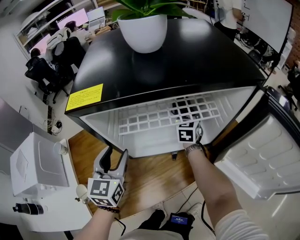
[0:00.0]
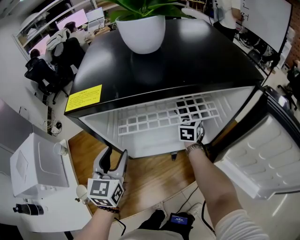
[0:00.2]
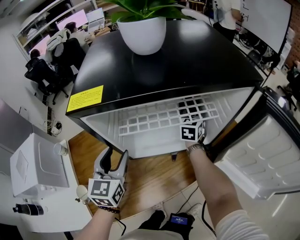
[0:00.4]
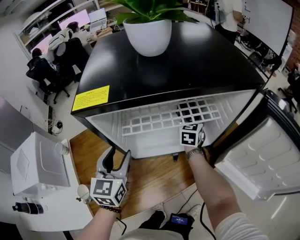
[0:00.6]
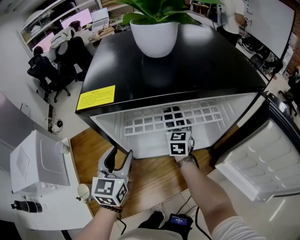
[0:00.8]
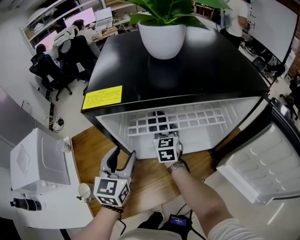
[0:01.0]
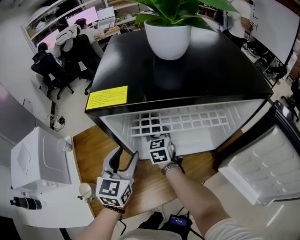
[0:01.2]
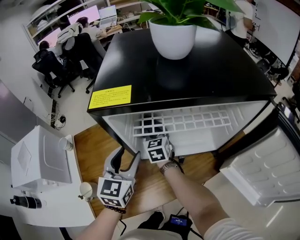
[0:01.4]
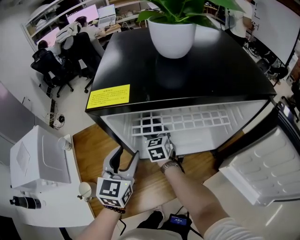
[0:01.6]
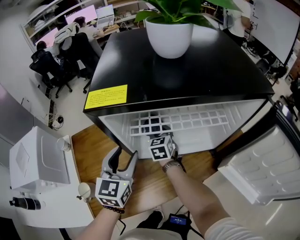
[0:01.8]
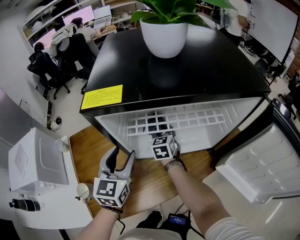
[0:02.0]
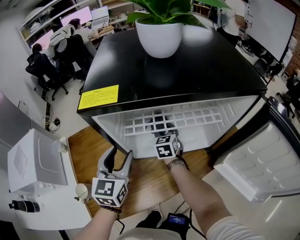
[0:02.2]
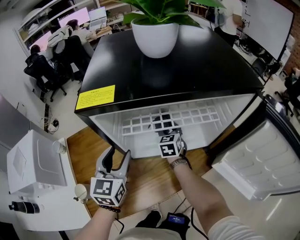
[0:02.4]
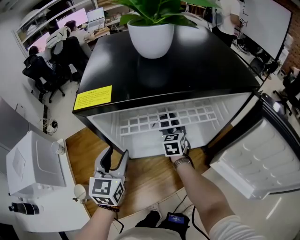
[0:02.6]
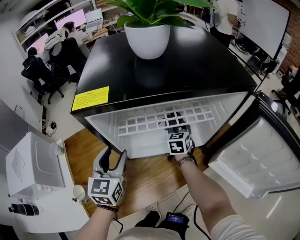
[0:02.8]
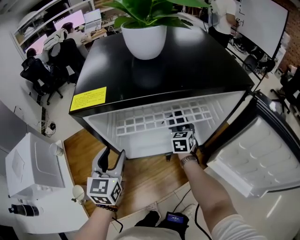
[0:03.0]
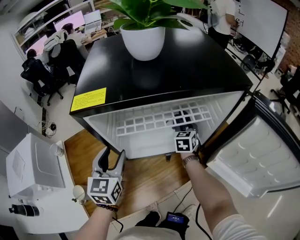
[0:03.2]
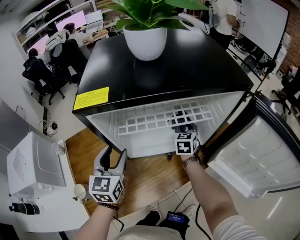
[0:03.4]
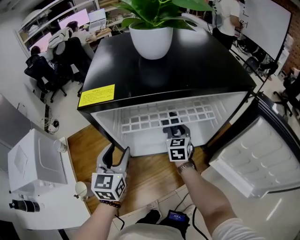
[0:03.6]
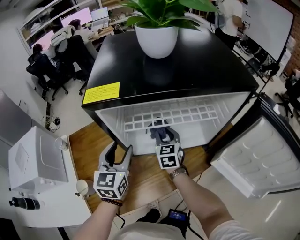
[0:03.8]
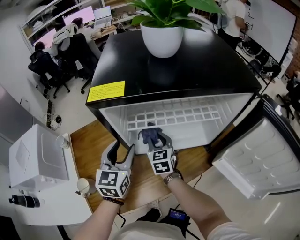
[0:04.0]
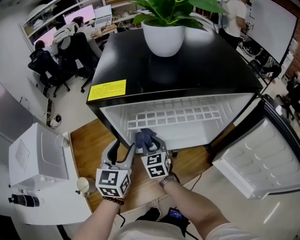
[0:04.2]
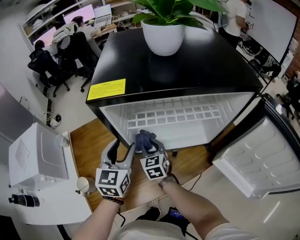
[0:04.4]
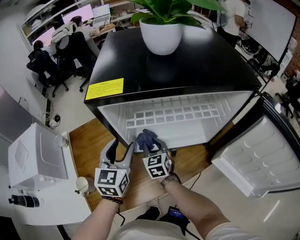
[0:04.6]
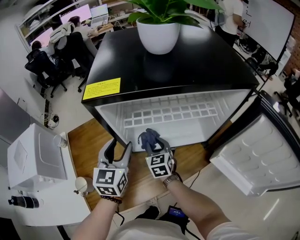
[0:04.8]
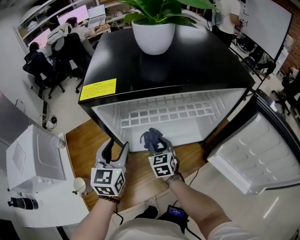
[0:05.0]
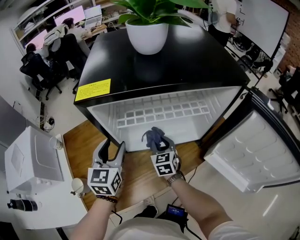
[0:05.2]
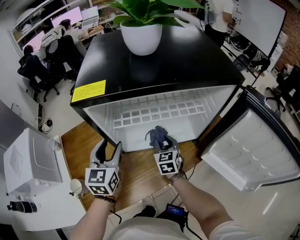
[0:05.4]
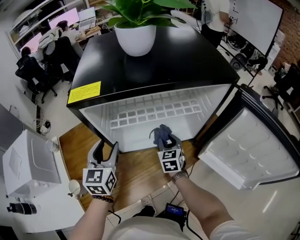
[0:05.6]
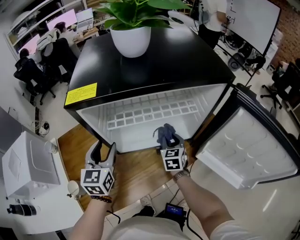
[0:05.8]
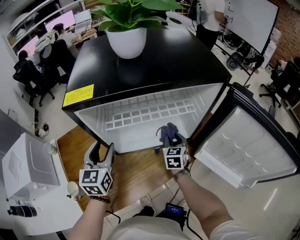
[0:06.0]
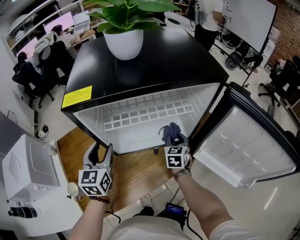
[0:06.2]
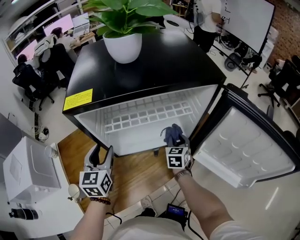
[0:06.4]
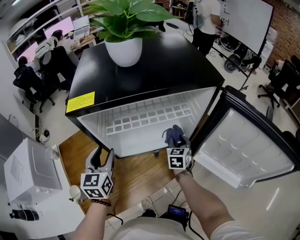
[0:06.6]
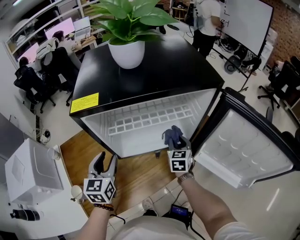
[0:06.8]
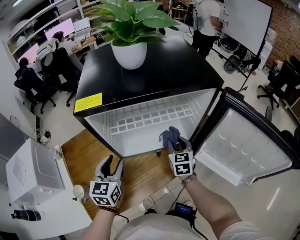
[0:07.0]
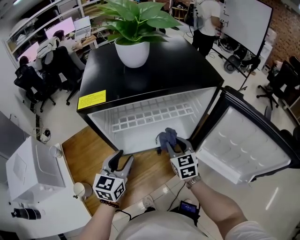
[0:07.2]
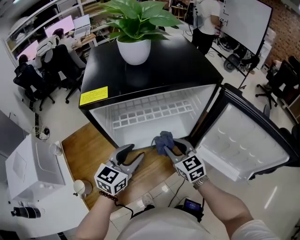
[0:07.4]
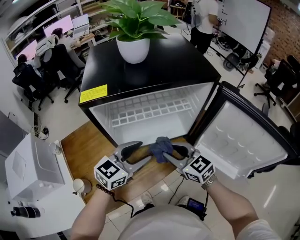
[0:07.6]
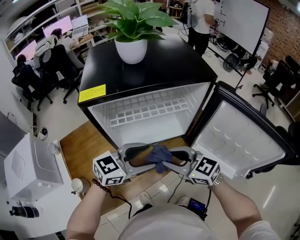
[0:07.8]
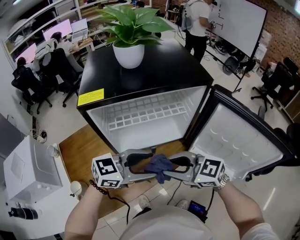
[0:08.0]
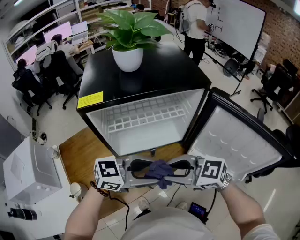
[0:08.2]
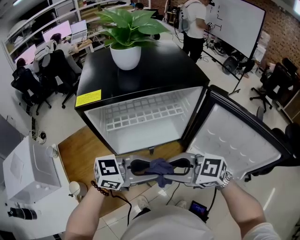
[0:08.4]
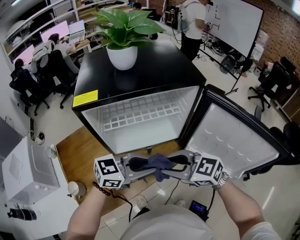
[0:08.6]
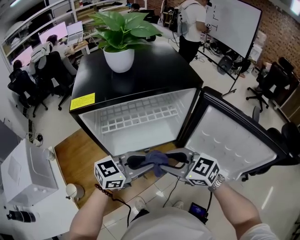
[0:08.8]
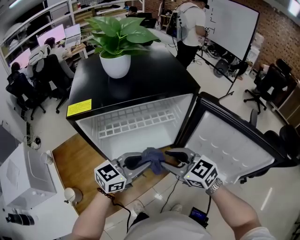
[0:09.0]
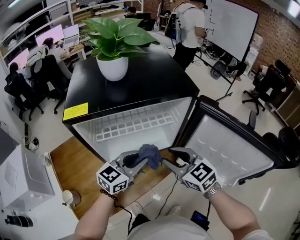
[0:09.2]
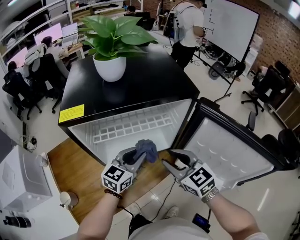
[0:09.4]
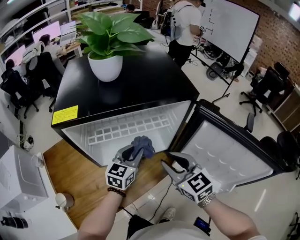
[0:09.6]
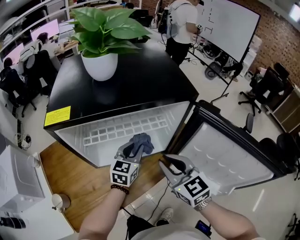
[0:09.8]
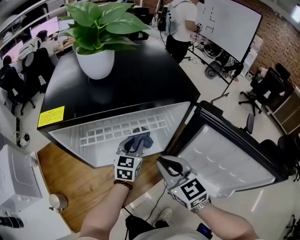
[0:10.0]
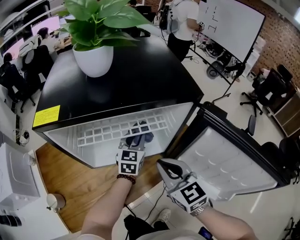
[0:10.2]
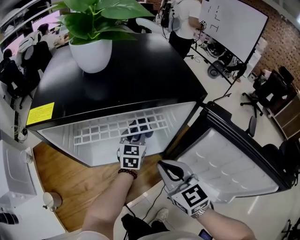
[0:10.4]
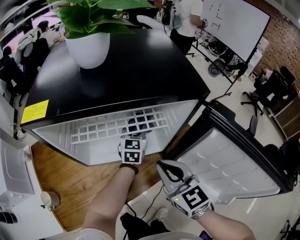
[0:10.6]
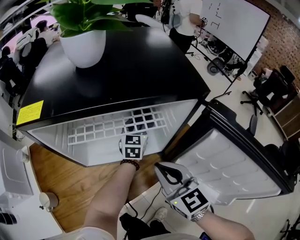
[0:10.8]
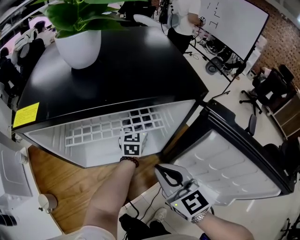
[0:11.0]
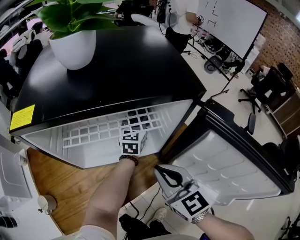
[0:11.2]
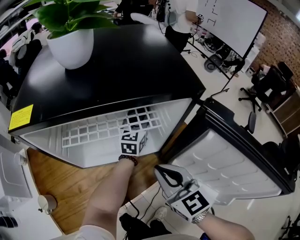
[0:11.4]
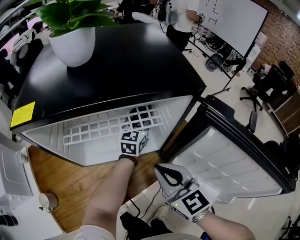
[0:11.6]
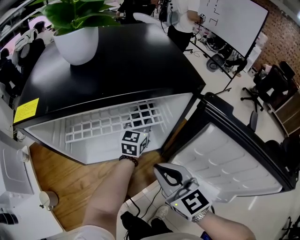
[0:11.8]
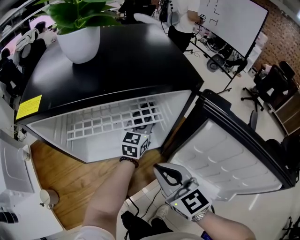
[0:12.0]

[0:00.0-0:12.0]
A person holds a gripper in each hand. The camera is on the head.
0:00.0 to 0:01.6: The right gripper shifts roughly 20 cm to the left, and swivels about 20 degrees.
0:01.6 to 0:03.0: The right gripper moves to the right, some 20 cm, and swivels roughly 20 degrees.
0:03.0 to 0:04.4: The right gripper is displaced to the left and backward by about 25 cm, and changes its angle by approximately 20 degrees.
0:04.4 to 0:06.0: The right gripper moves to the right, some 20 cm, and turns by roughly 20 degrees.
0:06.0 to 0:07.6: The left gripper moves to the right, approximately 15 cm, and rotates roughly 50 degrees, while the right gripper moves upward and backward, about 20 cm, and changes its angle by approximately 40 degrees.
0:07.6 to 0:09.0: The left gripper closes its fingers.
0:09.0 to 0:10.4: The left gripper moves forward and downward, some 25 cm, and changes its angle by roughly 40 degrees; the right gripper changes place by approximately 5 cm, and closes its fingers.
0:10.4 to 0:12.0: The left gripper shifts roughly 5 cm to the right.

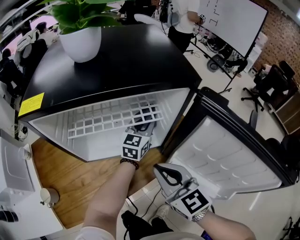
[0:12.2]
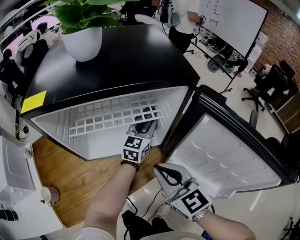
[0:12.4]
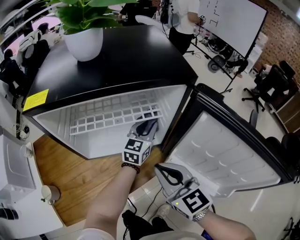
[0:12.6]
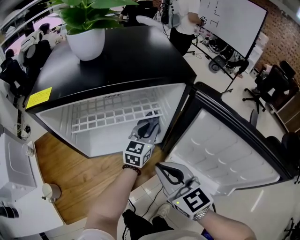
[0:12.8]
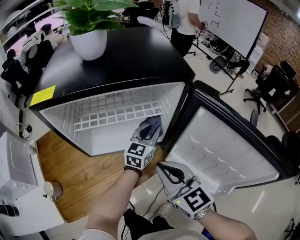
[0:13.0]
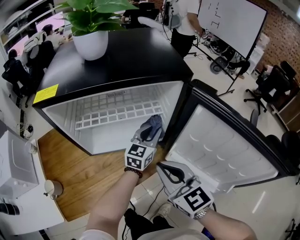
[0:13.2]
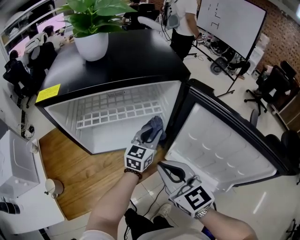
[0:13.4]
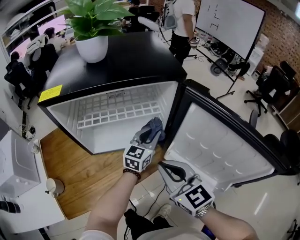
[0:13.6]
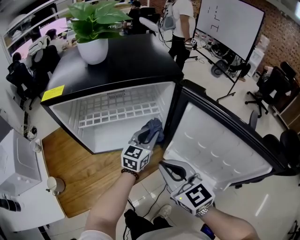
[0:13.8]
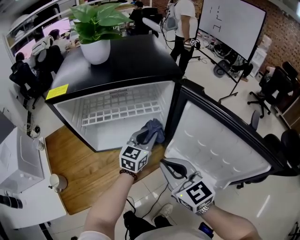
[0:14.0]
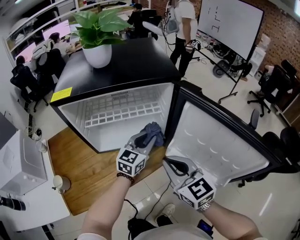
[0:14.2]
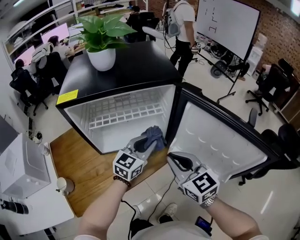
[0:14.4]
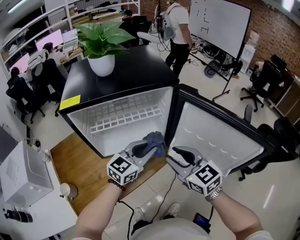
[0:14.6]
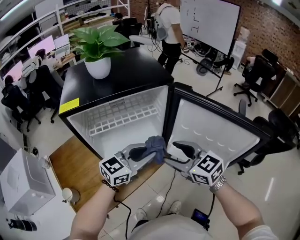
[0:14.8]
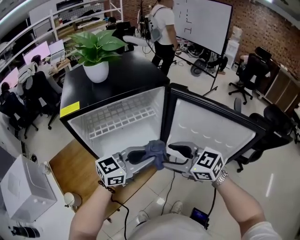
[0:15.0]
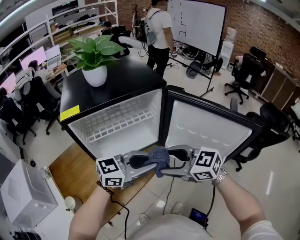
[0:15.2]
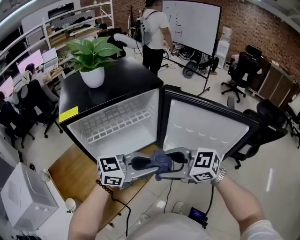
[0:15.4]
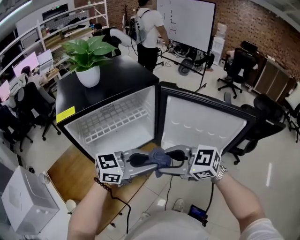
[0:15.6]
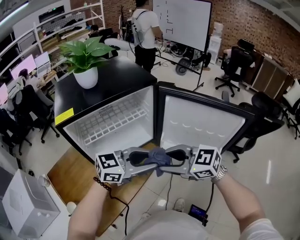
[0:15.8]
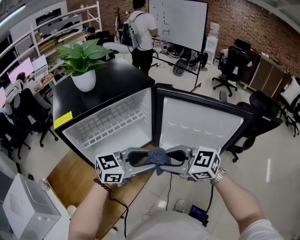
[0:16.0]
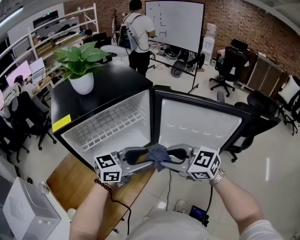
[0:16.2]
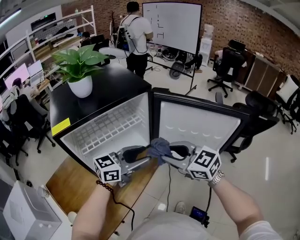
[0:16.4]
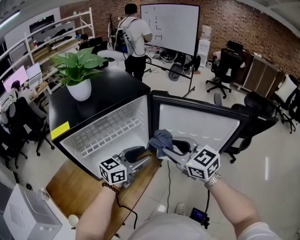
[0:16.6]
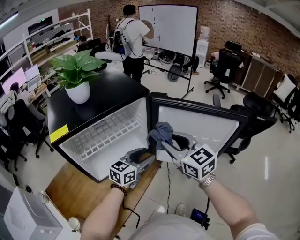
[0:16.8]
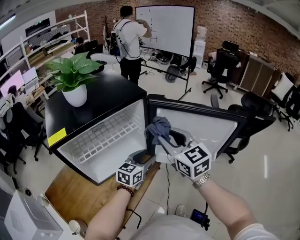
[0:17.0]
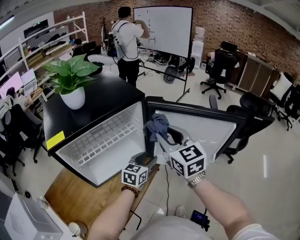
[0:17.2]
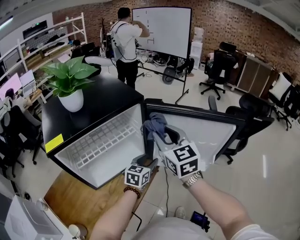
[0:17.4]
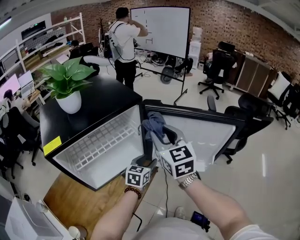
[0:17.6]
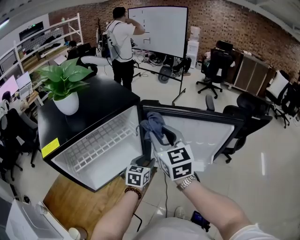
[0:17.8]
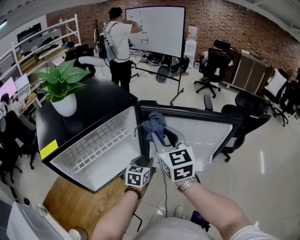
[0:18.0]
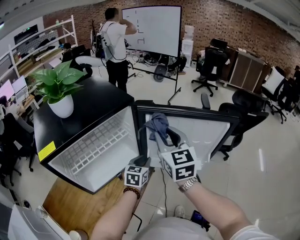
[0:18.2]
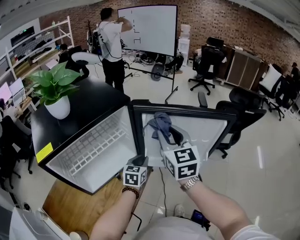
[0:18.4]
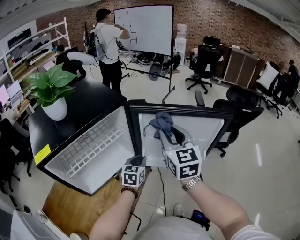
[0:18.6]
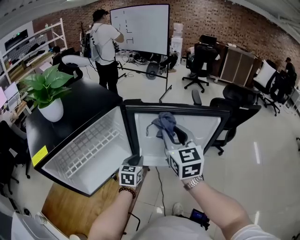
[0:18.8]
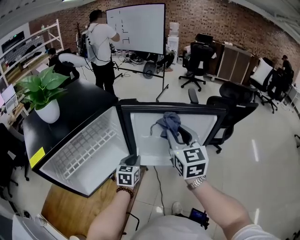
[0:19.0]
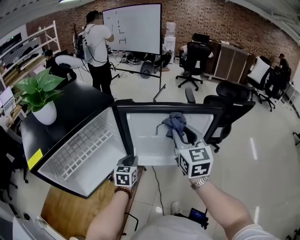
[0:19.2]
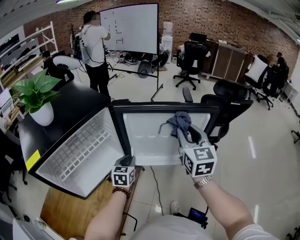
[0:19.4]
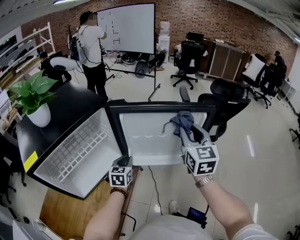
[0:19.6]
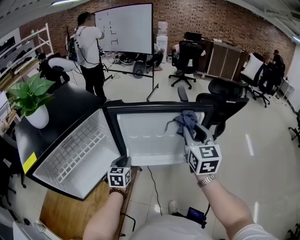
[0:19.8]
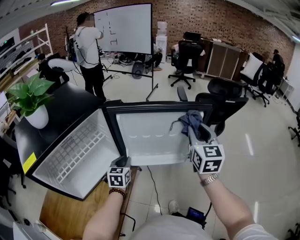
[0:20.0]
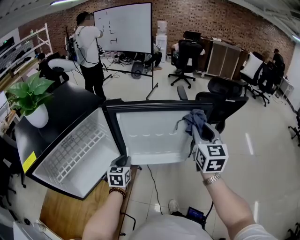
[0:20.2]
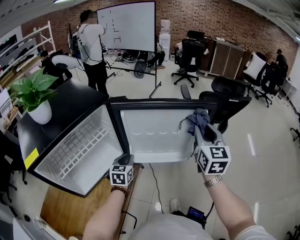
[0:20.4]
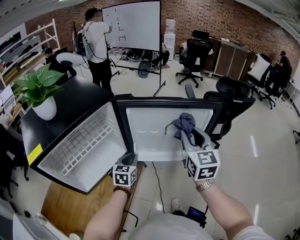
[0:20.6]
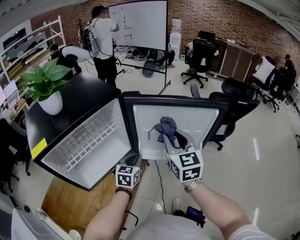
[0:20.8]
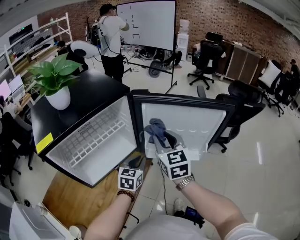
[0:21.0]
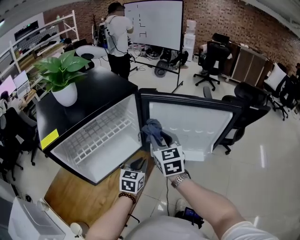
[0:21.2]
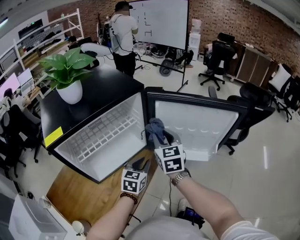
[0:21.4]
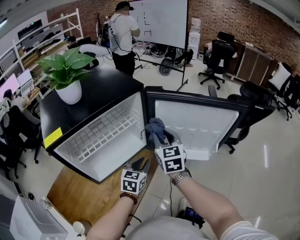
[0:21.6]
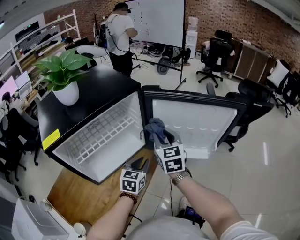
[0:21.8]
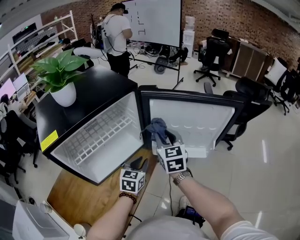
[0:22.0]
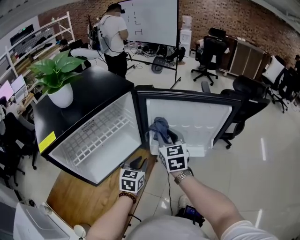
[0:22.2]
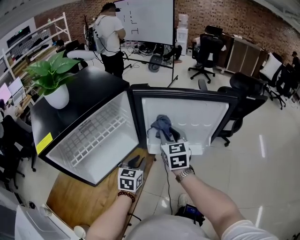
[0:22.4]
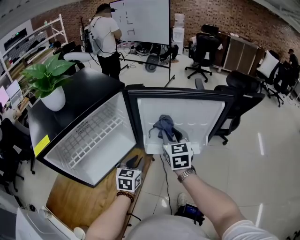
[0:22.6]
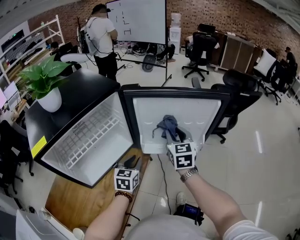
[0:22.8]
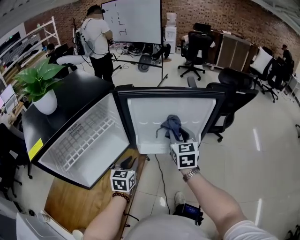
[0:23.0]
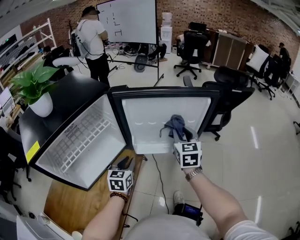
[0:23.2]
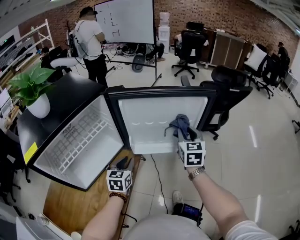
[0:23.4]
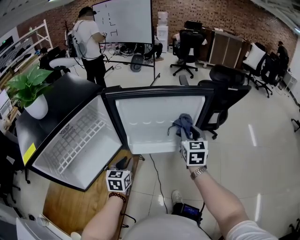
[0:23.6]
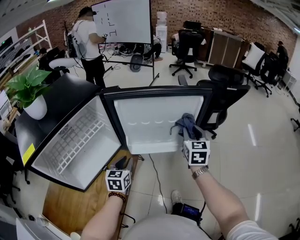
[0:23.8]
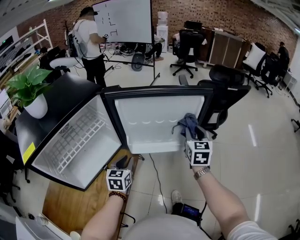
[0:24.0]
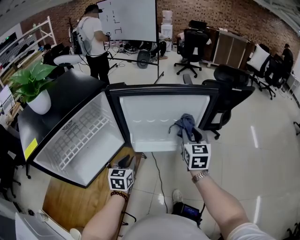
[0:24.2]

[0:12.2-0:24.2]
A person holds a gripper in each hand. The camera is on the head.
0:12.2 to 0:13.8: The right gripper moves backward, some 5 cm. Meanwhile the left gripper moves backward, some 10 cm.
0:13.8 to 0:15.2: The right gripper shifts by some 5 cm, and opens its fingers. Meanwhile the left gripper moves roughly 25 cm, and changes its angle by approximately 50 degrees.
0:15.2 to 0:16.6: The left gripper ends up about 10 cm from where it was, and opens. Meanwhile the right gripper ends up approximately 10 cm from where it was, changes its angle by approximately 30 degrees, and closes its fingers.
0:16.6 to 0:18.2: The left gripper shifts some 15 cm downward and forward, rotates about 30 degrees, and closes. The right gripper heads forward, covering approximately 10 cm, and rotates approximately 40 degrees.
0:18.2 to 0:19.8: The right gripper travels to the right by about 20 cm, and turns by some 20 degrees.
0:19.8 to 0:21.2: The left gripper heads backward, covering roughly 10 cm. Meanwhile the right gripper heads to the left, covering about 25 cm, and changes its angle by approximately 20 degrees.
0:21.2 to 0:22.6: The right gripper travels to the right by approximately 10 cm.
0:22.6 to 0:24.2: The right gripper travels to the right by about 15 cm.
